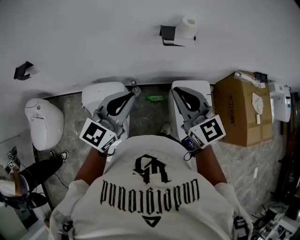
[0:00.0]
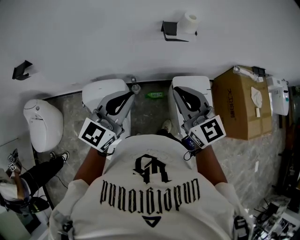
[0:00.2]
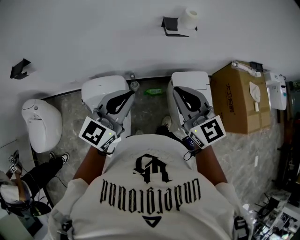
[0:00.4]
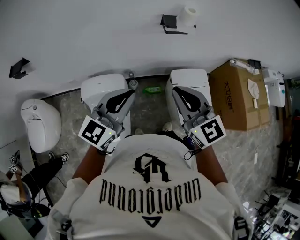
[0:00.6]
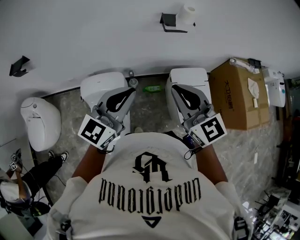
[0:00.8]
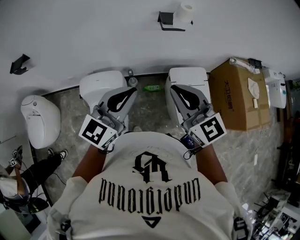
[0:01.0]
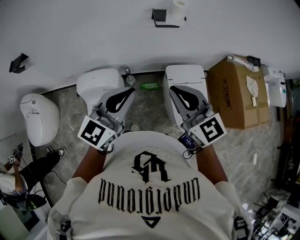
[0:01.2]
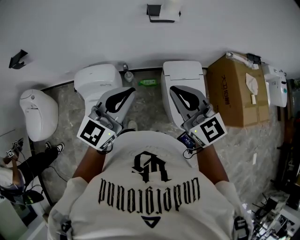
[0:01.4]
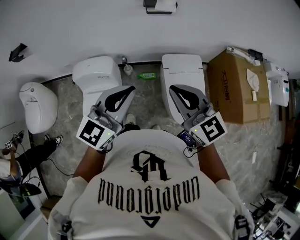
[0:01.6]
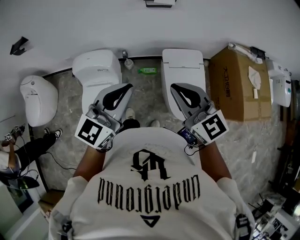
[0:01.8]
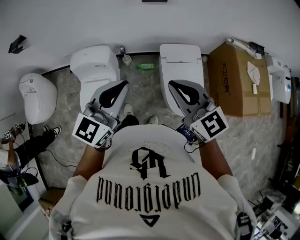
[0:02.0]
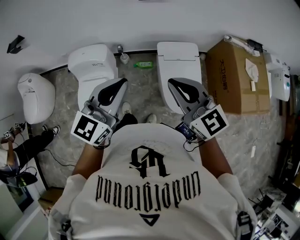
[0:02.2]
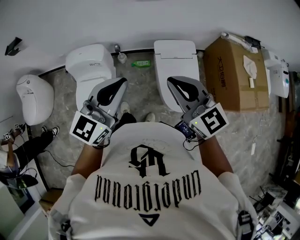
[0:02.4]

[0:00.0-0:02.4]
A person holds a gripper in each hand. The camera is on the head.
0:00.0 to 0:01.2: Both grippers travel together backward, roughly 10 cm.
0:01.2 to 0:02.4: Both grippers travel together to the right and backward, approximately 15 cm.

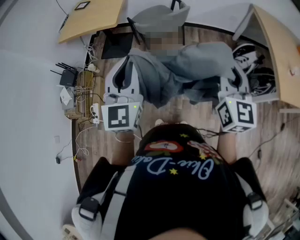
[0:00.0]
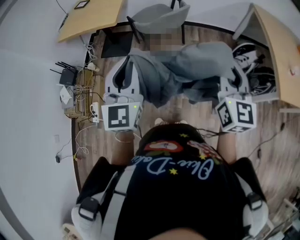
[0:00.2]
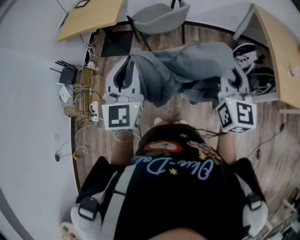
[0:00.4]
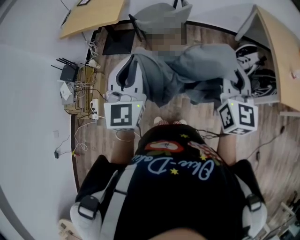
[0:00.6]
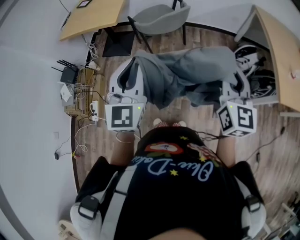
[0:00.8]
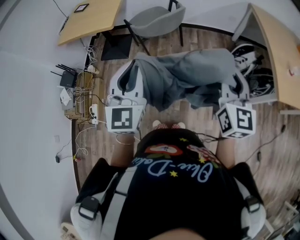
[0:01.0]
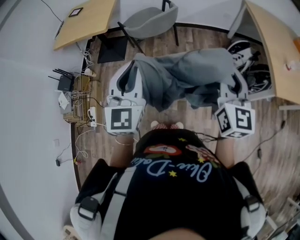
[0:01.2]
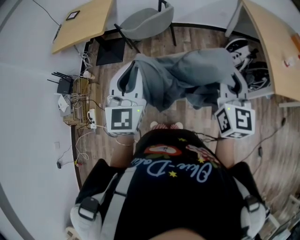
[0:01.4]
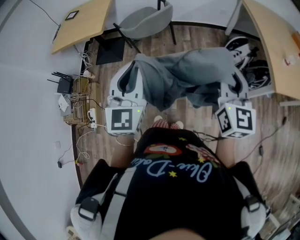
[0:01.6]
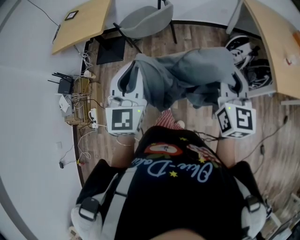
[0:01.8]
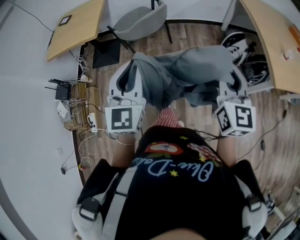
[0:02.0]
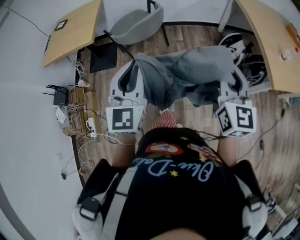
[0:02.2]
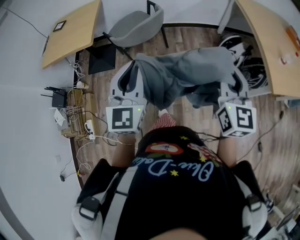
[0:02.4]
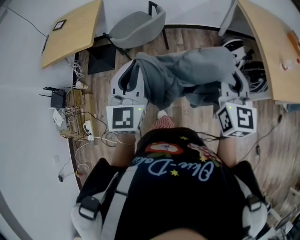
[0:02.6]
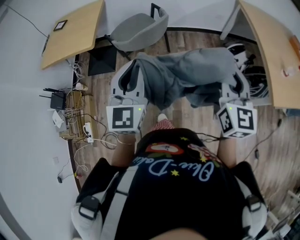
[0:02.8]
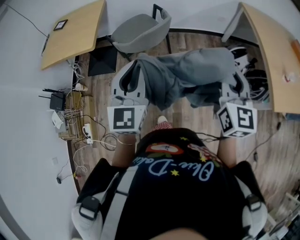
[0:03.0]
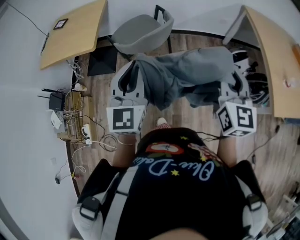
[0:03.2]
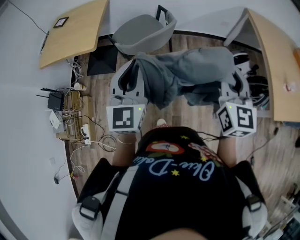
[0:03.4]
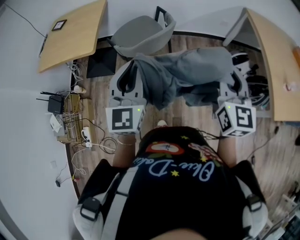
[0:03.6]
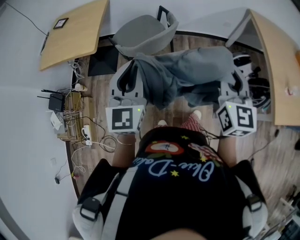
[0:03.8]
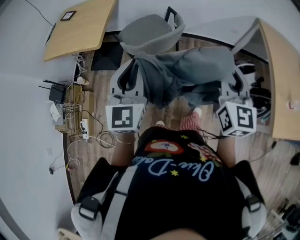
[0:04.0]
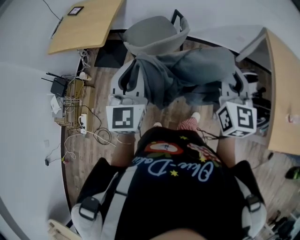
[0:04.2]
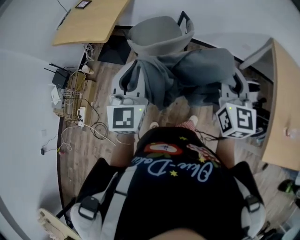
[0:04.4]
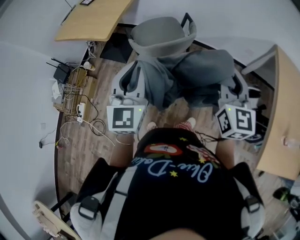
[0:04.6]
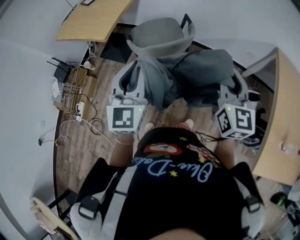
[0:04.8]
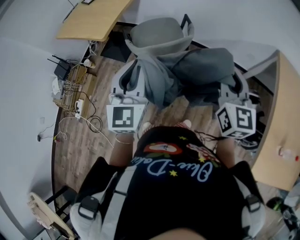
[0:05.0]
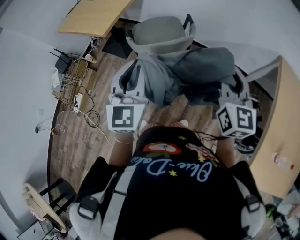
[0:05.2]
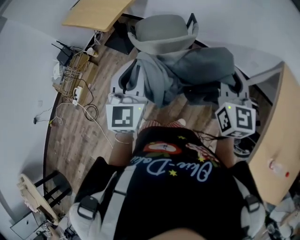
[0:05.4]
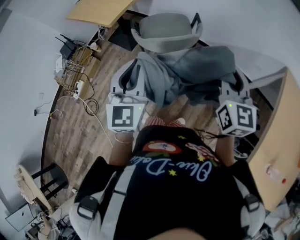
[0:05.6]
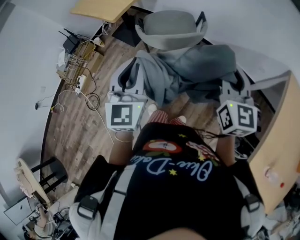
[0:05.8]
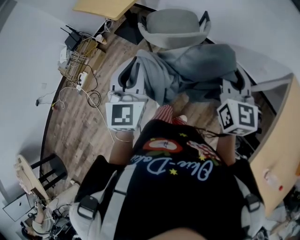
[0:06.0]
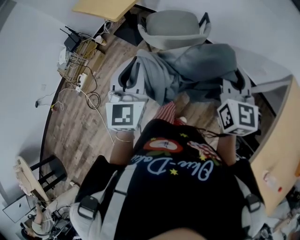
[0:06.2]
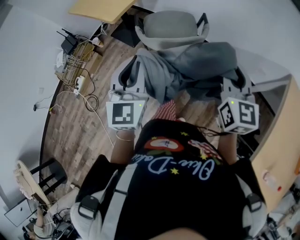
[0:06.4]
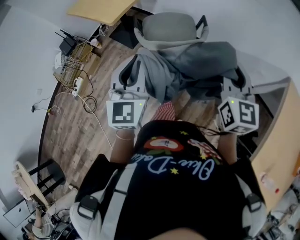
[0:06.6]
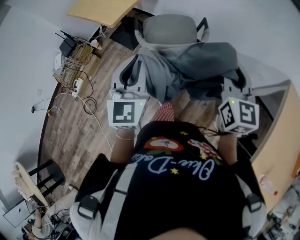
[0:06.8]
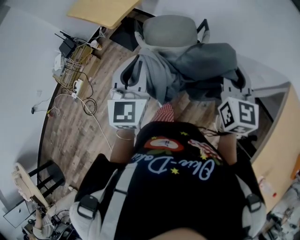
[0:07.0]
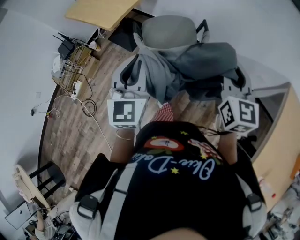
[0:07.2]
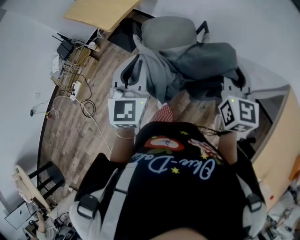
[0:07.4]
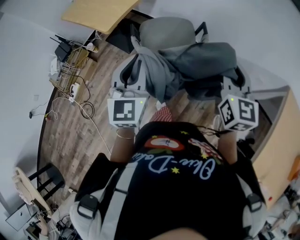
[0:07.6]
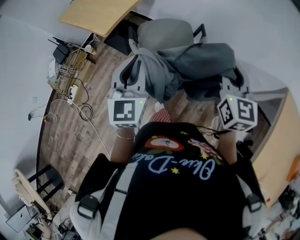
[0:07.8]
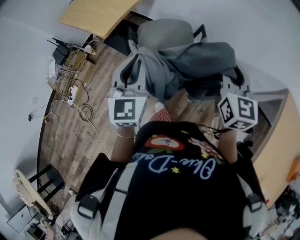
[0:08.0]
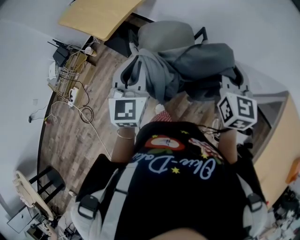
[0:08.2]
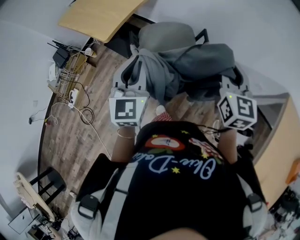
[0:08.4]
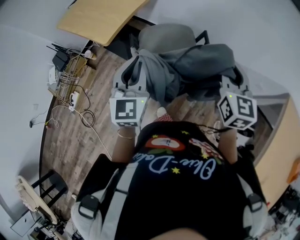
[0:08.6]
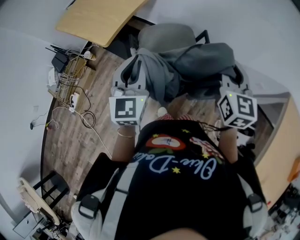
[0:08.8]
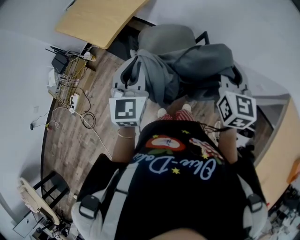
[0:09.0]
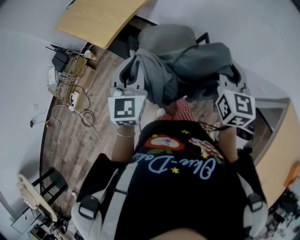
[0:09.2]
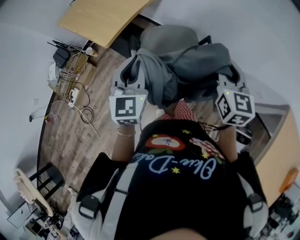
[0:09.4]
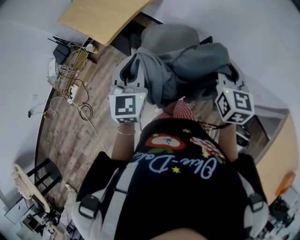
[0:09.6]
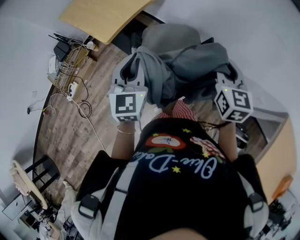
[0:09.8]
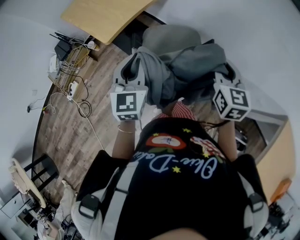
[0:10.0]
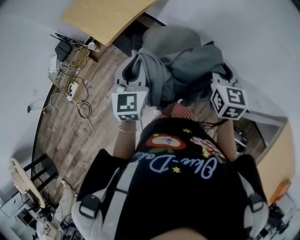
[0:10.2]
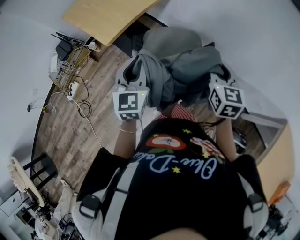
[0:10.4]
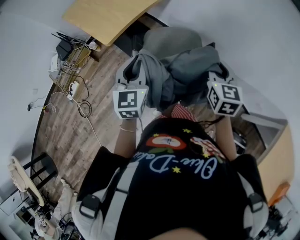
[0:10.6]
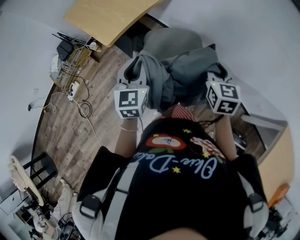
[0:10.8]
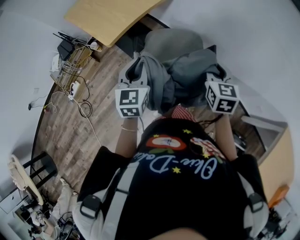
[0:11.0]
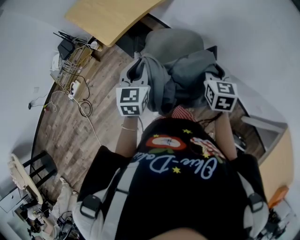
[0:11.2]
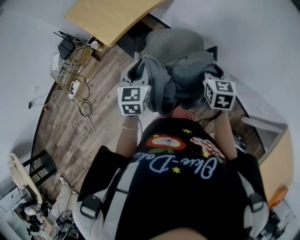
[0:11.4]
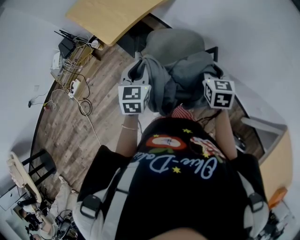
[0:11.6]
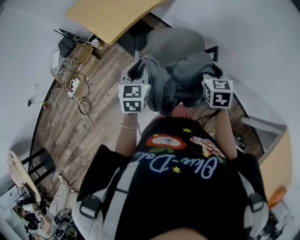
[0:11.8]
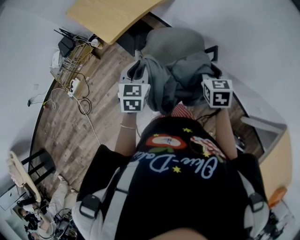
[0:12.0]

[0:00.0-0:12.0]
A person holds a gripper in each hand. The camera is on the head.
0:00.0 to 0:01.6: Both grippers travel together to the right, some 10 cm.
0:01.6 to 0:03.0: Both grippers move forward, roughly 15 cm.
0:03.0 to 0:04.4: The left gripper travels forward by about 10 cm; the right gripper travels forward by roughly 15 cm.
0:04.4 to 0:06.0: The right gripper is displaced forward and to the right by roughly 10 cm, and rotates about 20 degrees. The left gripper travels to the right by roughly 10 cm, and turns by approximately 20 degrees.
0:06.0 to 0:07.6: Both grippers move forward, about 15 cm.
0:07.6 to 0:09.0: The grippers both shift forward by about 10 cm.
0:09.0 to 0:10.4: The right gripper goes about 10 cm forward and downward. Meanwhile the left gripper moves about 5 cm.
0:10.4 to 0:12.0: Both grippers travel together downward, roughly 10 cm.

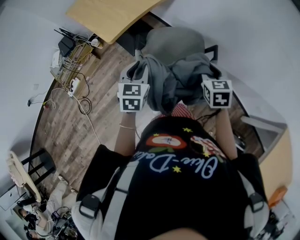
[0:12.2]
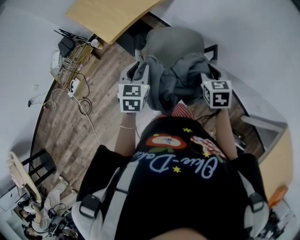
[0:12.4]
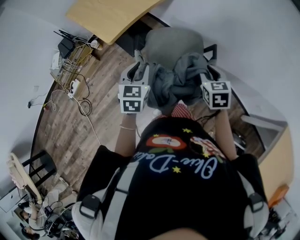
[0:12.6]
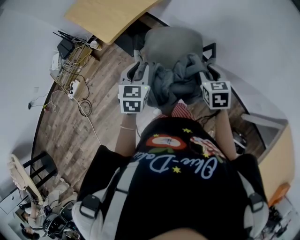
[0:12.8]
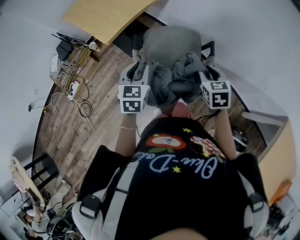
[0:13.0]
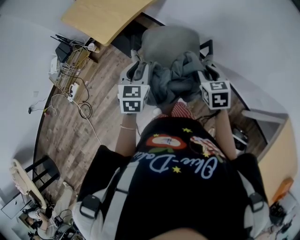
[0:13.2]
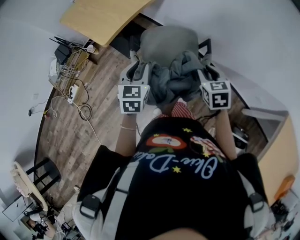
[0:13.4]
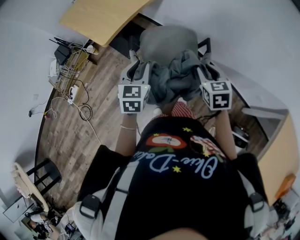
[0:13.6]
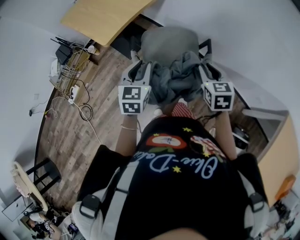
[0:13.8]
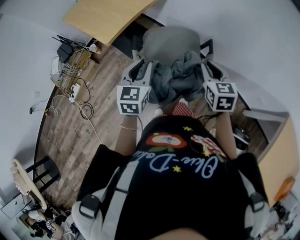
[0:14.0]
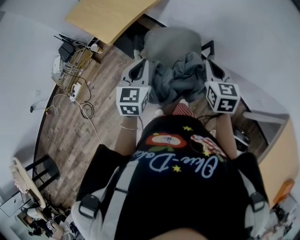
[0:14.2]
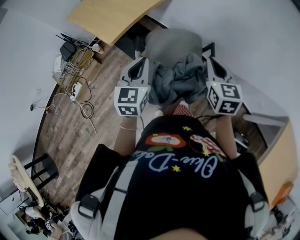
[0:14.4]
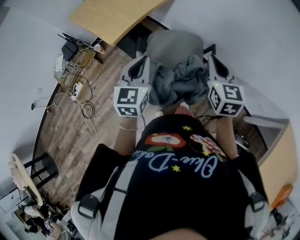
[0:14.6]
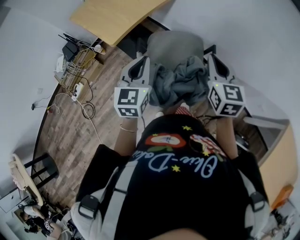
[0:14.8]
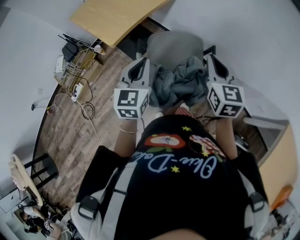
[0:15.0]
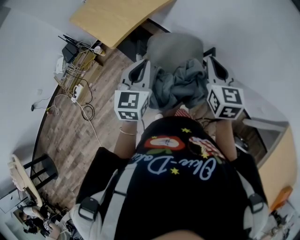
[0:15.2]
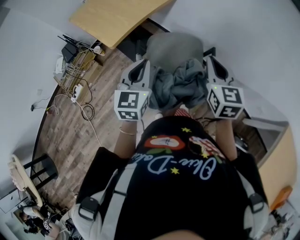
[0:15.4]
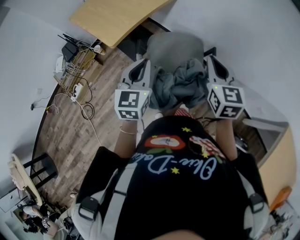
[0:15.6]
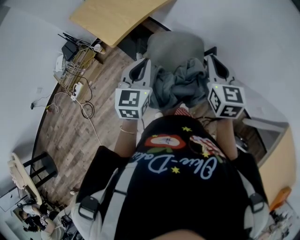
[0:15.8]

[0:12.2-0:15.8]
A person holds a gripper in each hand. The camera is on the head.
0:12.2 to 0:14.0: The right gripper changes place by about 5 cm. Meanwhile the left gripper moves about 5 cm.
0:14.0 to 0:15.8: The right gripper heads upward, covering approximately 10 cm. The left gripper shifts by some 5 cm.

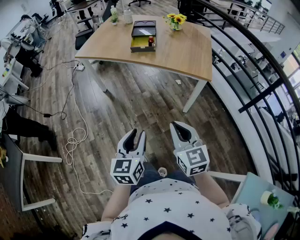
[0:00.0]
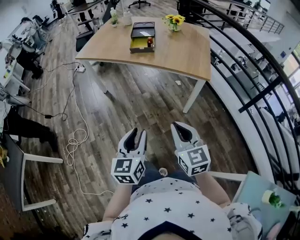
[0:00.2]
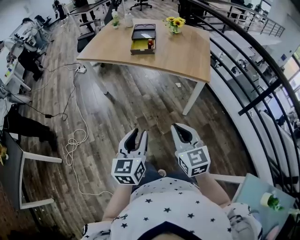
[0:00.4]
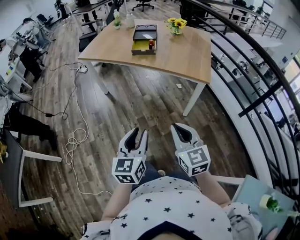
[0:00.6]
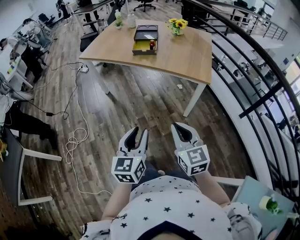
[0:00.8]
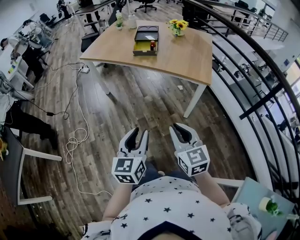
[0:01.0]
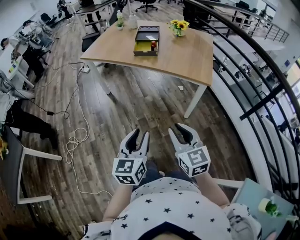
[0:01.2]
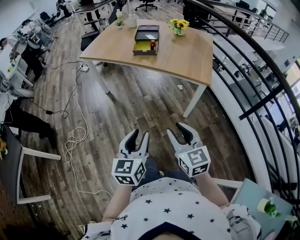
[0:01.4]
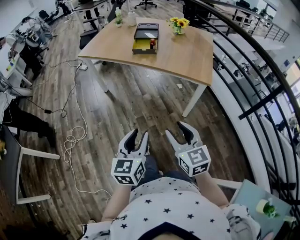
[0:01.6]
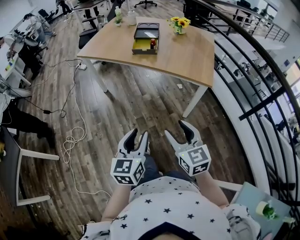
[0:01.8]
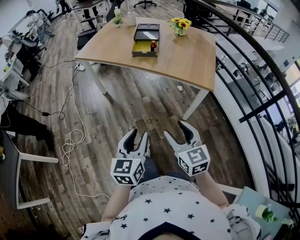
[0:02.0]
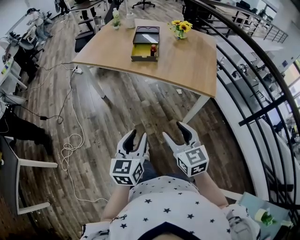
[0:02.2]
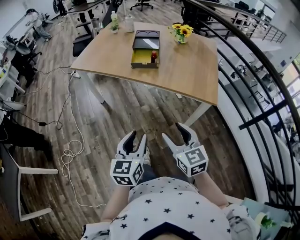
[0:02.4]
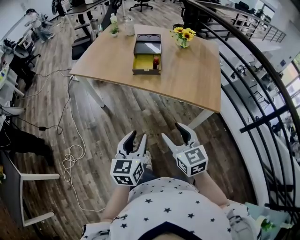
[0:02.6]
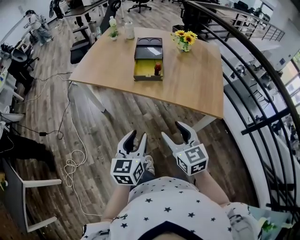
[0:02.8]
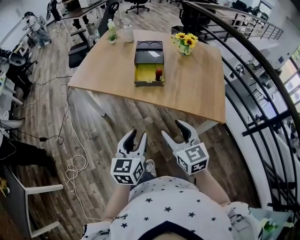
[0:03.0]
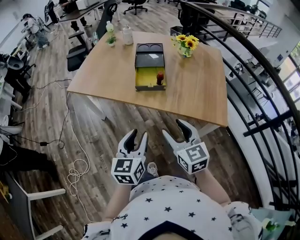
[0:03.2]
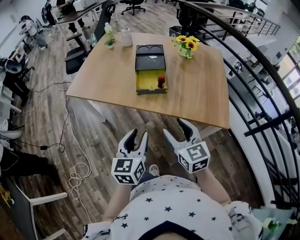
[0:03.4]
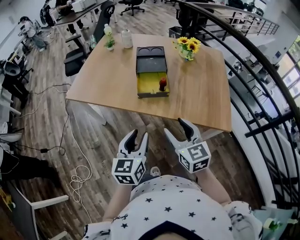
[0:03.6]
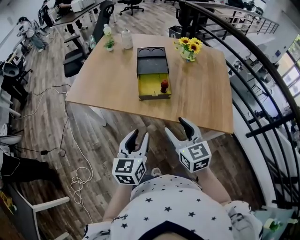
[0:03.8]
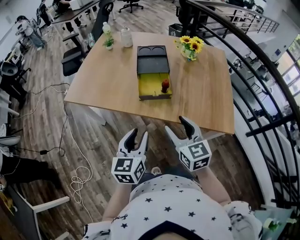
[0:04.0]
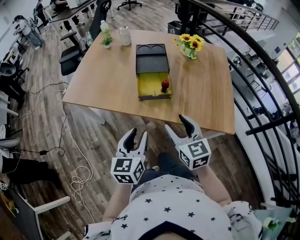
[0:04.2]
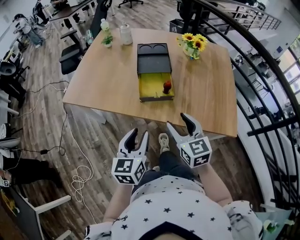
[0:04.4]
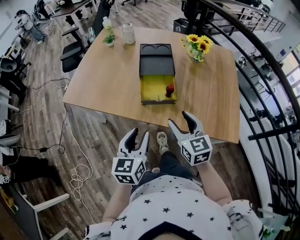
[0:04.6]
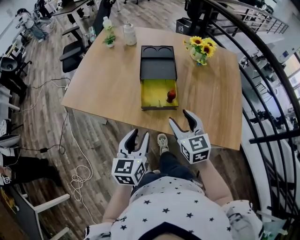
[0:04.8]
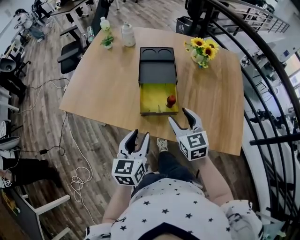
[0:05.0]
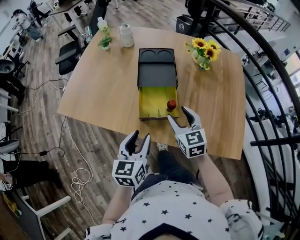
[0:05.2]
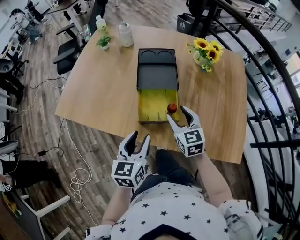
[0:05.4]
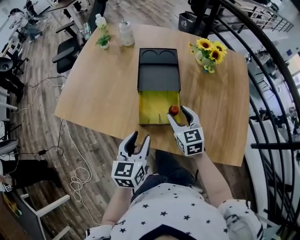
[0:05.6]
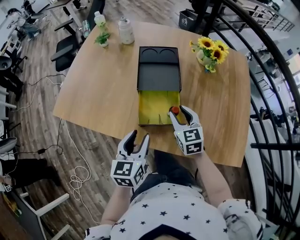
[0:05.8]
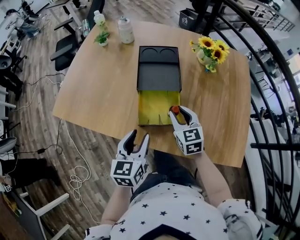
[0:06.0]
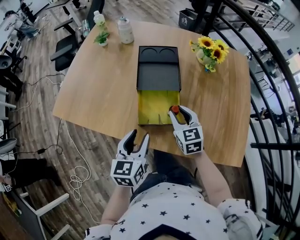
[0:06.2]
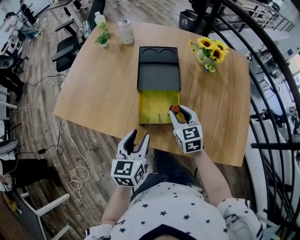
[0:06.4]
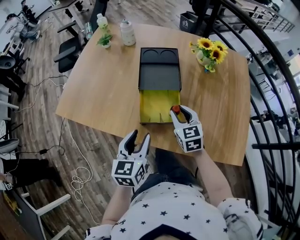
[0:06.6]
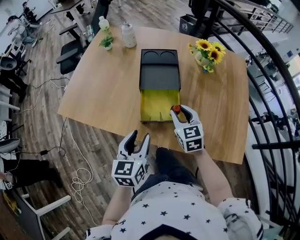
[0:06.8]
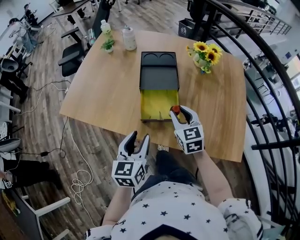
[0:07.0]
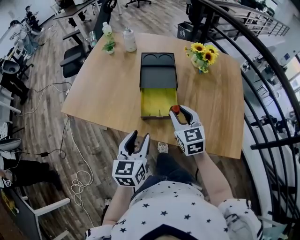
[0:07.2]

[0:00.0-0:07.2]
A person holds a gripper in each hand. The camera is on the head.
0:00.0 to 0:01.4: The right gripper opens its fingers.
0:01.4 to 0:02.8: Both grippers travel together forward, some 30 cm. The right gripper opens up.
0:02.8 to 0:04.4: Both grippers move forward, some 20 cm.
0:04.4 to 0:05.8: The left gripper is displaced forward by approximately 15 cm, while the right gripper goes approximately 25 cm forward and downward.
0:05.8 to 0:07.2: The right gripper moves upward and backward, approximately 10 cm. Meanwhile the left gripper travels backward by some 5 cm.
